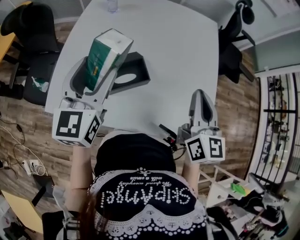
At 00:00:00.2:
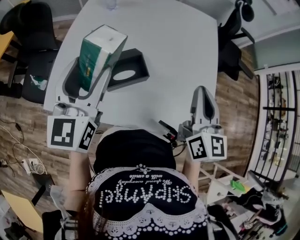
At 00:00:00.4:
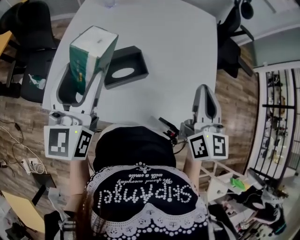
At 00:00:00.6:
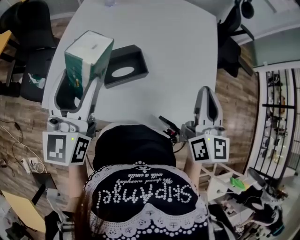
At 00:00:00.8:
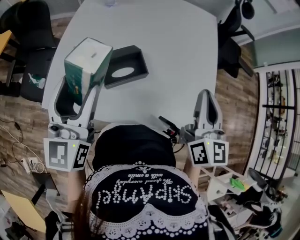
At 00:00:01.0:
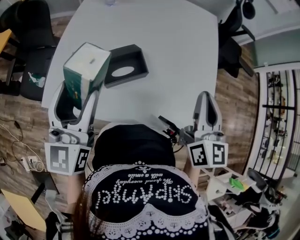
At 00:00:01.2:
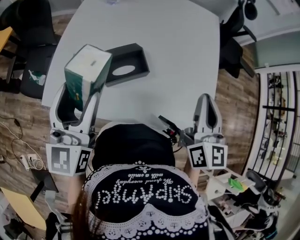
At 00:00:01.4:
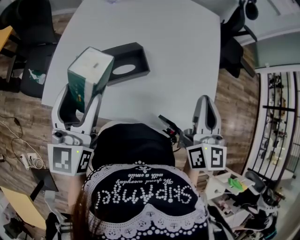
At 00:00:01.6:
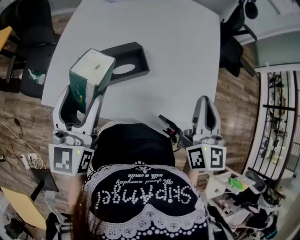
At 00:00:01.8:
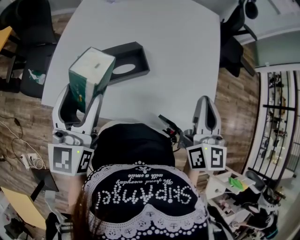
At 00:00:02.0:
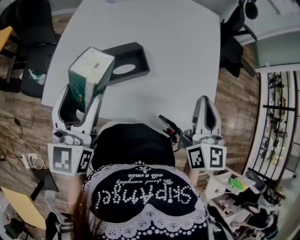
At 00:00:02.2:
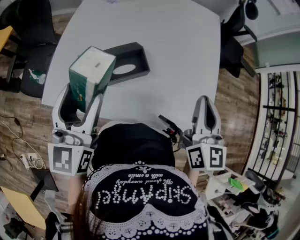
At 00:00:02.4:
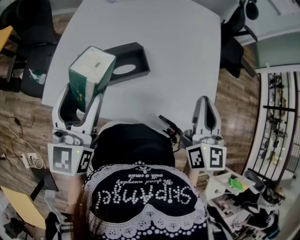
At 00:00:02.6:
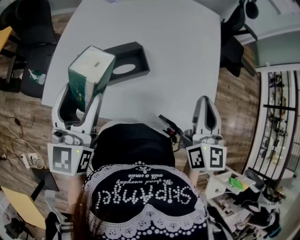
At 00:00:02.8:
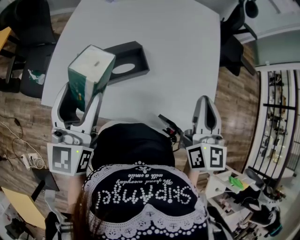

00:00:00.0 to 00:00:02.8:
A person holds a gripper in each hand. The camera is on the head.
00:00:00.0 to 00:00:01.4: The left gripper moves backward, approximately 10 cm.
00:00:01.4 to 00:00:02.8: There are only small adjustments of the grippers.

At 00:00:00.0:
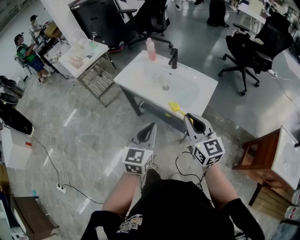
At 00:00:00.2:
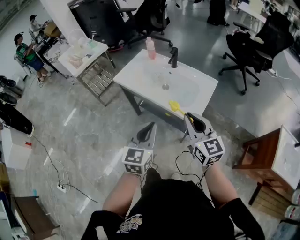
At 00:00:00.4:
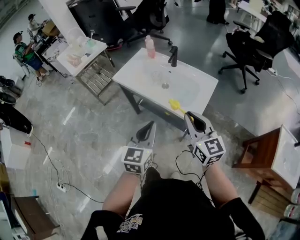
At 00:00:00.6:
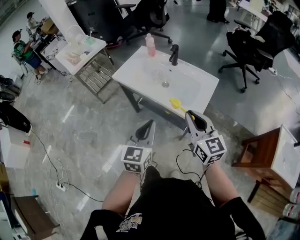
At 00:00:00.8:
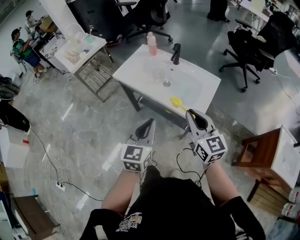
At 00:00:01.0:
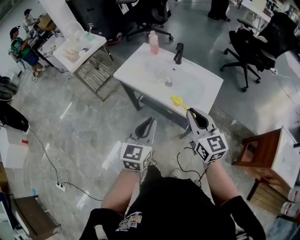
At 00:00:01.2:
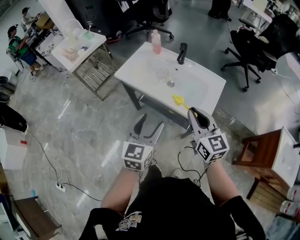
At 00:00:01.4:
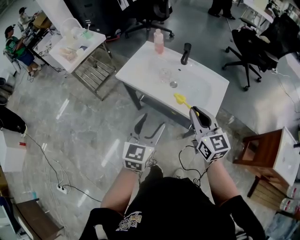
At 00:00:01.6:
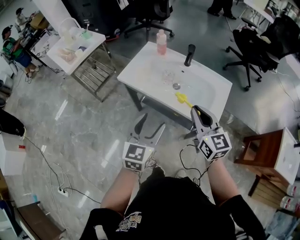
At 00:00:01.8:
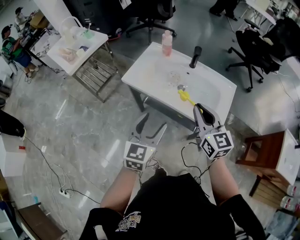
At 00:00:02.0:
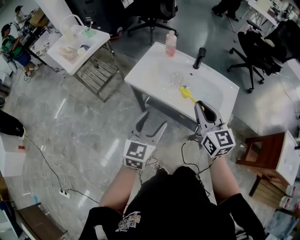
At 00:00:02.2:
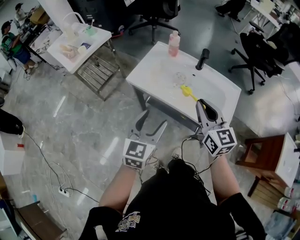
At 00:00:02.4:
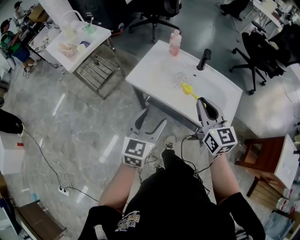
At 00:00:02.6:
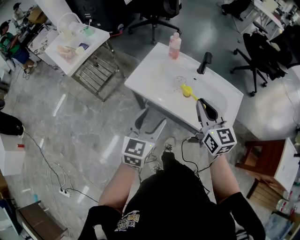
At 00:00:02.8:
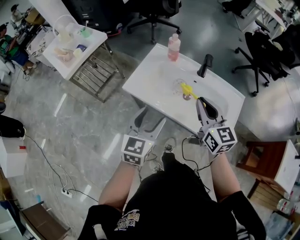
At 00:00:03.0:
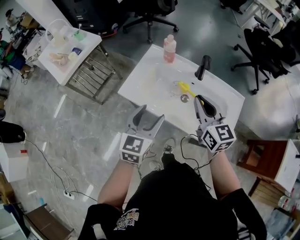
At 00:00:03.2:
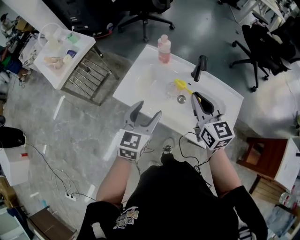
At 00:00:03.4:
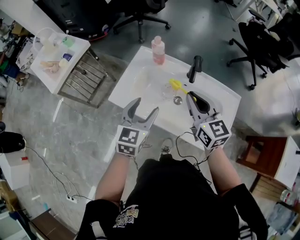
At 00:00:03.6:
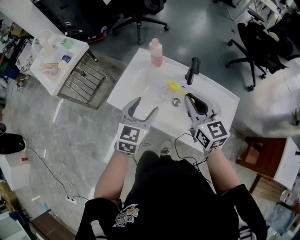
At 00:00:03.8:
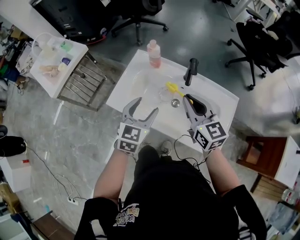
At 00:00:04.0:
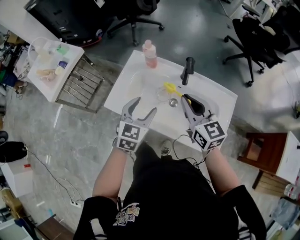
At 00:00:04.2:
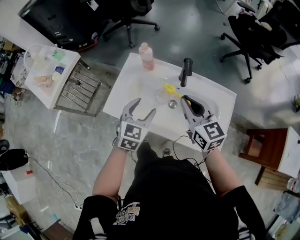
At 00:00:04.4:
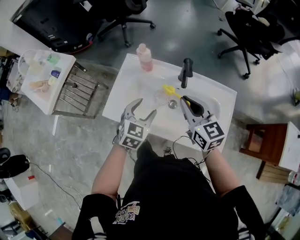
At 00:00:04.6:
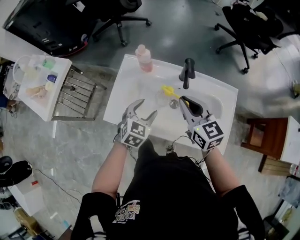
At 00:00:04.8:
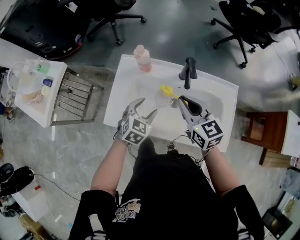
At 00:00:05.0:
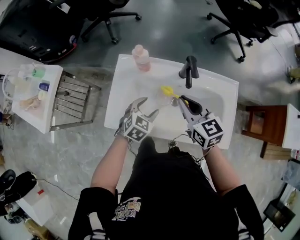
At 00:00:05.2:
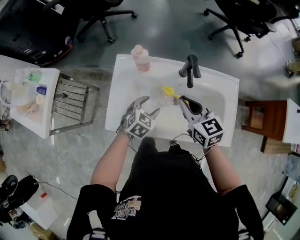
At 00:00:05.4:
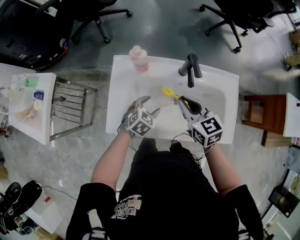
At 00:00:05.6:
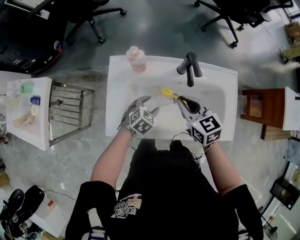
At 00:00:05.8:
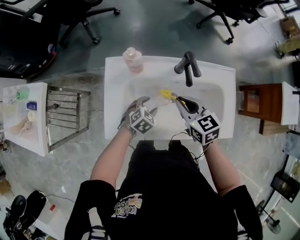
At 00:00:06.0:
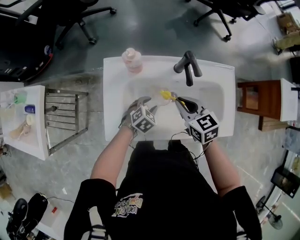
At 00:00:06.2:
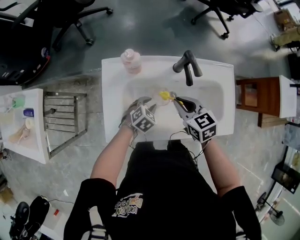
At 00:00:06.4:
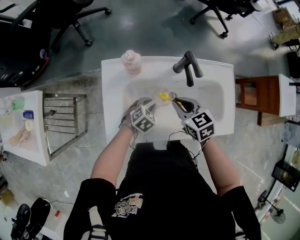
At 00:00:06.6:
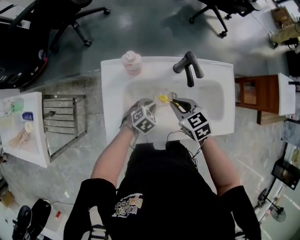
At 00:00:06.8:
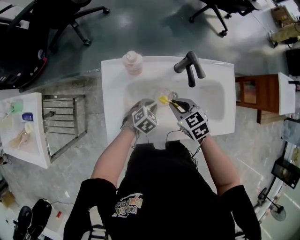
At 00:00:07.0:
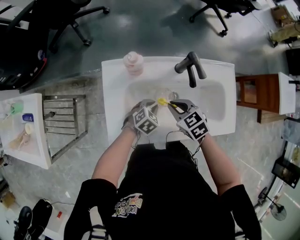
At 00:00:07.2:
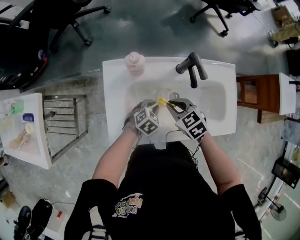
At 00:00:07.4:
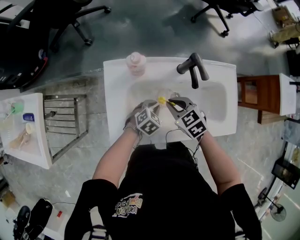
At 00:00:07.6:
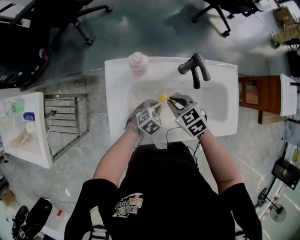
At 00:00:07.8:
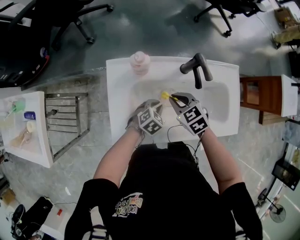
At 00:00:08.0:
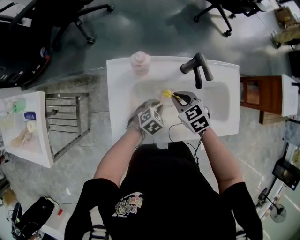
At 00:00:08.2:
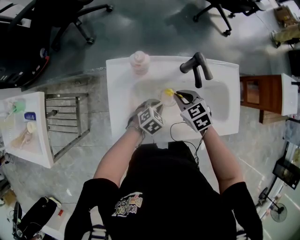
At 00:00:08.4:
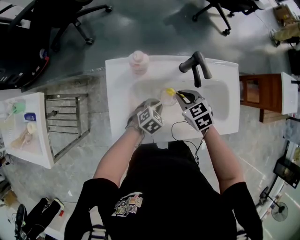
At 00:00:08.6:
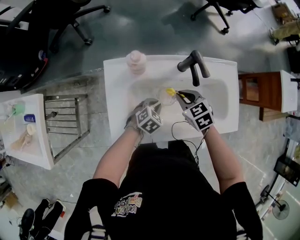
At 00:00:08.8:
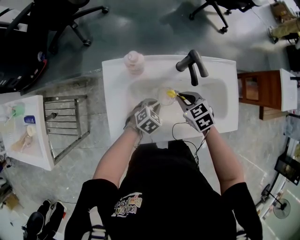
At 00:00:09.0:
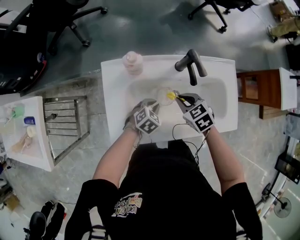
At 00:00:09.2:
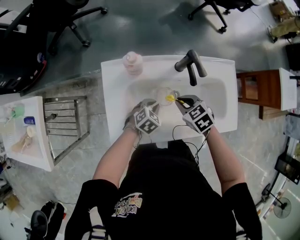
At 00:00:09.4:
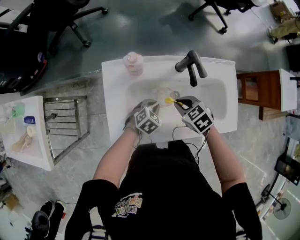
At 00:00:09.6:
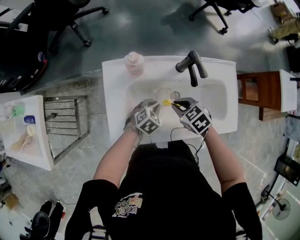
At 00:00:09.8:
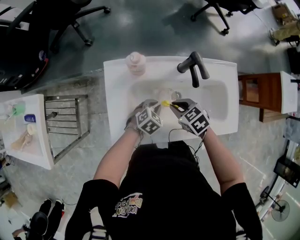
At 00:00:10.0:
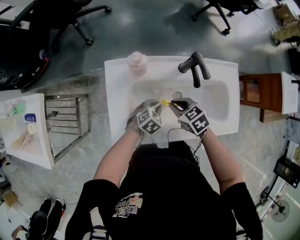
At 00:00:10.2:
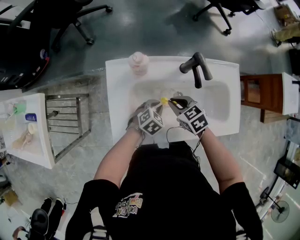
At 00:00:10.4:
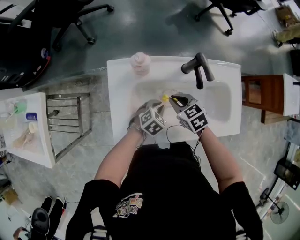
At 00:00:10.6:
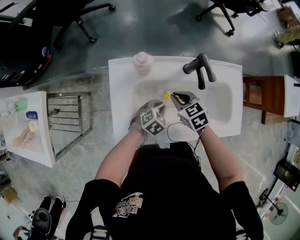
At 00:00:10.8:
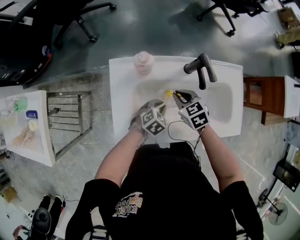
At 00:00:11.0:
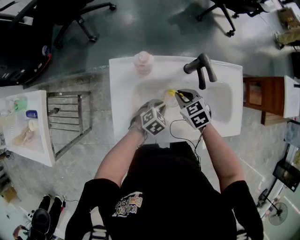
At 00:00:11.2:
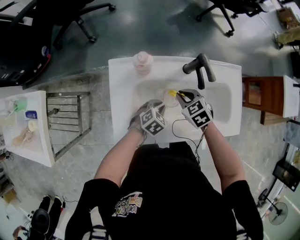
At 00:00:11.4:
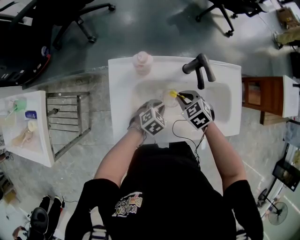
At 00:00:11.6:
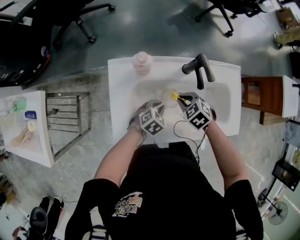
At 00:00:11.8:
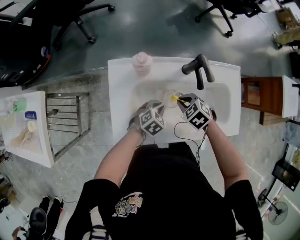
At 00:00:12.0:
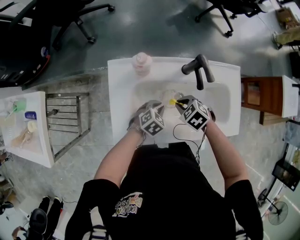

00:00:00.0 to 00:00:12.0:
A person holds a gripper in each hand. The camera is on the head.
00:00:00.0 to 00:00:01.6: Both grippers travel together forward and to the left, roughly 15 cm. The left gripper opens its fingers.
00:00:01.6 to 00:00:03.0: Both grippers travel together forward, some 20 cm.
00:00:03.0 to 00:00:04.4: The left gripper travels forward and downward by roughly 15 cm, and changes its angle by roughly 30 degrees. The right gripper heads forward, covering about 5 cm.
00:00:04.4 to 00:00:06.0: The two grippers go about 15 cm downward. The left gripper swivels roughly 40 degrees, and closes its fingers. Meanwhile the right gripper changes its angle by roughly 30 degrees.
00:00:06.0 to 00:00:07.6: The left gripper closes up, while the right gripper travels downward and to the left by roughly 10 cm.
00:00:07.6 to 00:00:09.0: The right gripper travels to the right by some 5 cm.
00:00:09.0 to 00:00:10.4: The right gripper goes roughly 5 cm to the left.
00:00:10.4 to 00:00:12.0: The right gripper rotates approximately 30 degrees.

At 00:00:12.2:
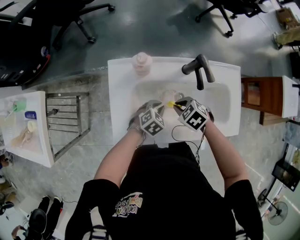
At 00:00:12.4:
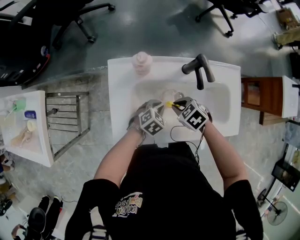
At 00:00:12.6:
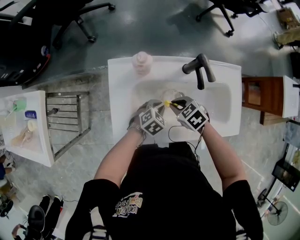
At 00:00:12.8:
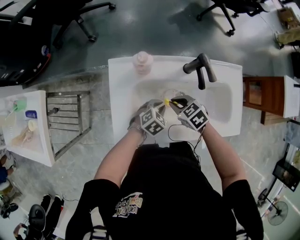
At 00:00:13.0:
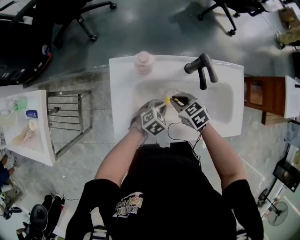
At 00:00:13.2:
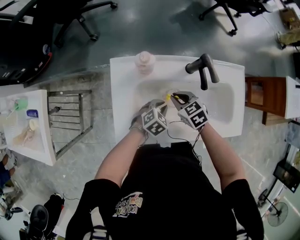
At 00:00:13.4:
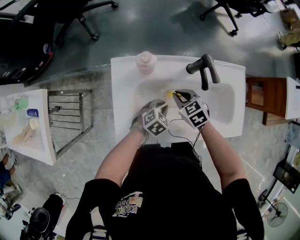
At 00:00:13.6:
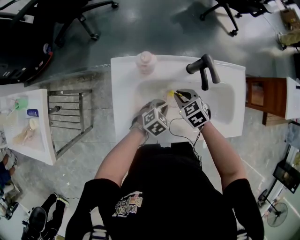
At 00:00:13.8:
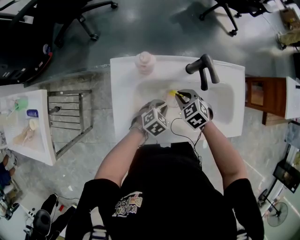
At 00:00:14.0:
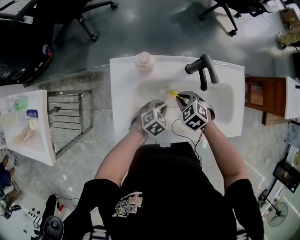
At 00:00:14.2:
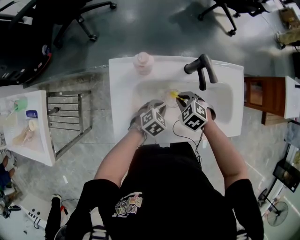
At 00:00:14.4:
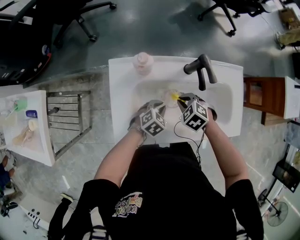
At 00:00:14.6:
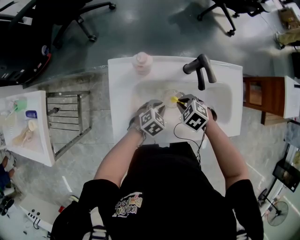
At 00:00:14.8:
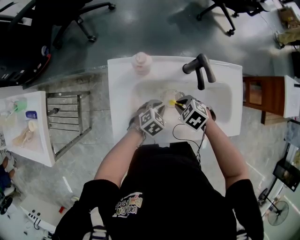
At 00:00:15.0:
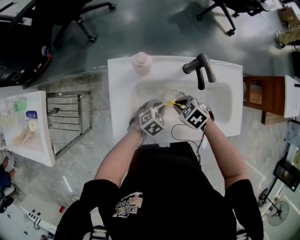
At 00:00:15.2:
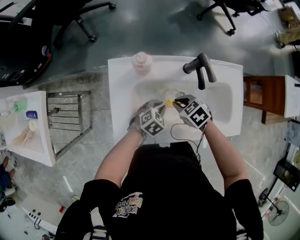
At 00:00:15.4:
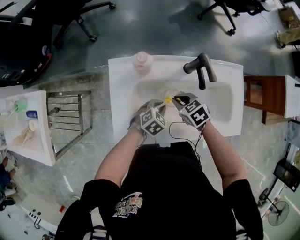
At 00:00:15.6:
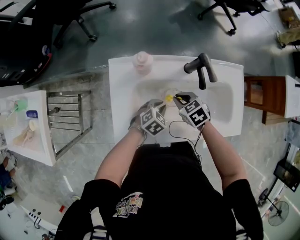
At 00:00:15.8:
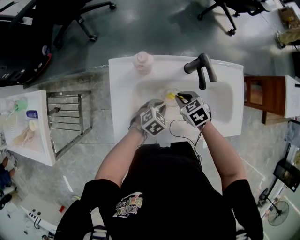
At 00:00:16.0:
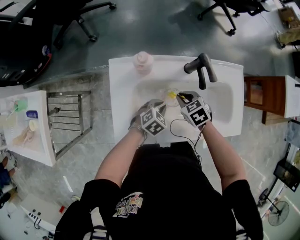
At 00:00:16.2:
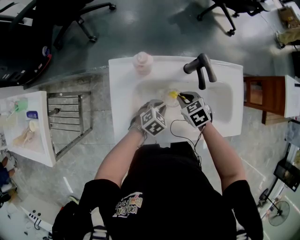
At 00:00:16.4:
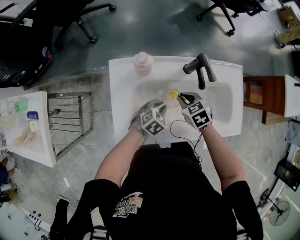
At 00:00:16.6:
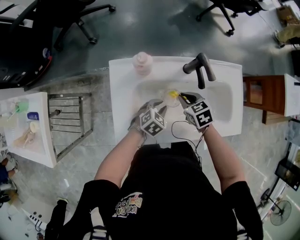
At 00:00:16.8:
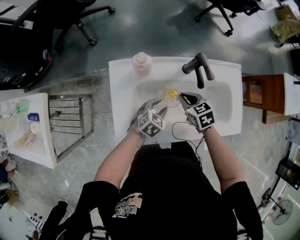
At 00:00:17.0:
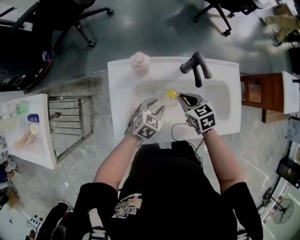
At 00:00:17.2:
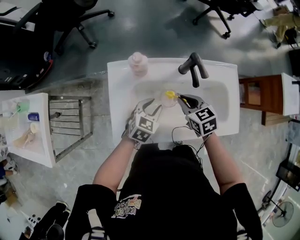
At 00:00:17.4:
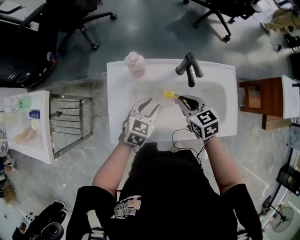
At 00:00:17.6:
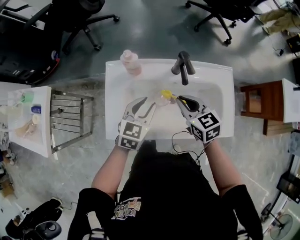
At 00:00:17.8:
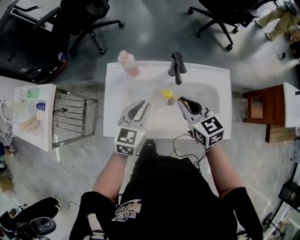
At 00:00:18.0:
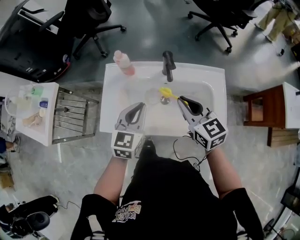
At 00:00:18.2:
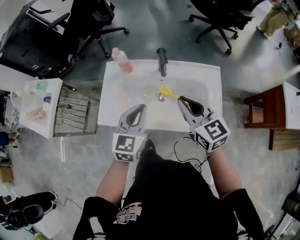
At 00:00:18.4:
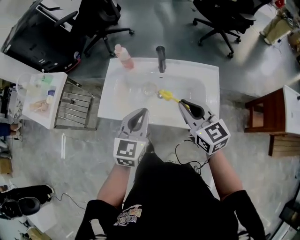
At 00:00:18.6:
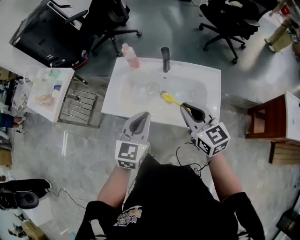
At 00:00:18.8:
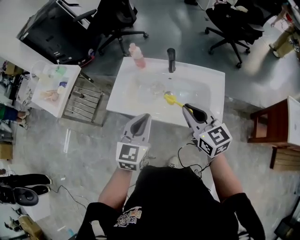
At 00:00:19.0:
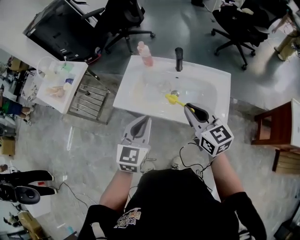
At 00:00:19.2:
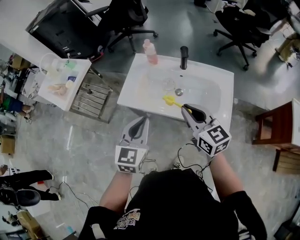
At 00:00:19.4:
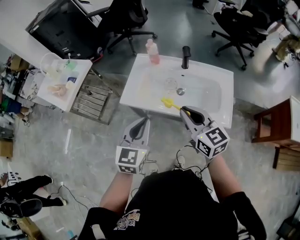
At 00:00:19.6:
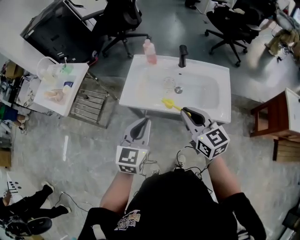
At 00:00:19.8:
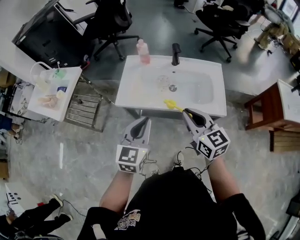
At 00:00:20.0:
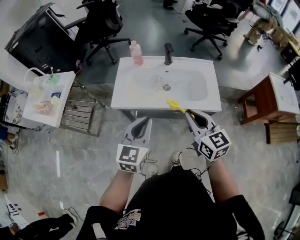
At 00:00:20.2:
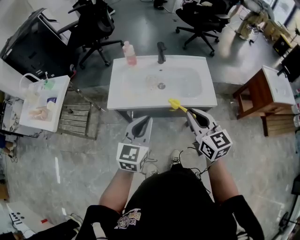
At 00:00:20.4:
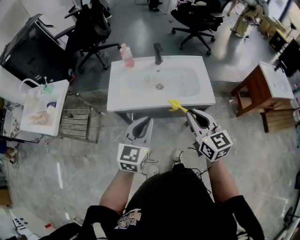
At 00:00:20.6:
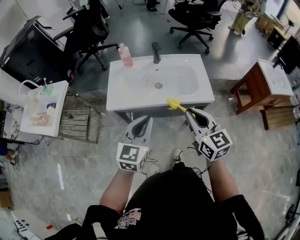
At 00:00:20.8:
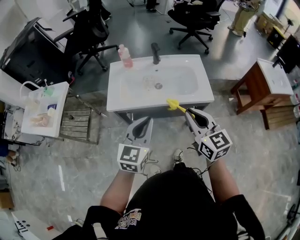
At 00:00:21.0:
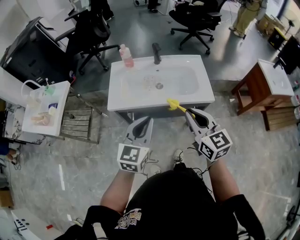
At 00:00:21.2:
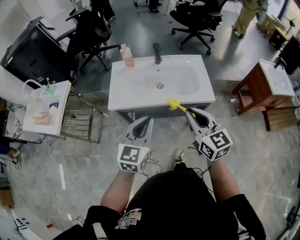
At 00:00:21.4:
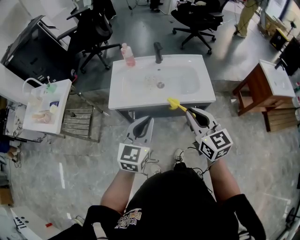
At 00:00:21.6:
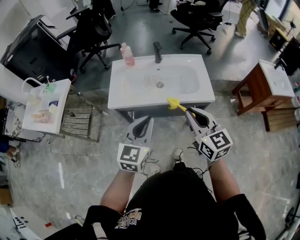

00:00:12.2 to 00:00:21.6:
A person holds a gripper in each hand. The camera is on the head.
00:00:12.2 to 00:00:13.8: The right gripper moves about 5 cm.
00:00:13.8 to 00:00:15.4: The grippers move only a little.
00:00:15.4 to 00:00:17.0: The right gripper moves roughly 5 cm.
00:00:17.0 to 00:00:18.4: The left gripper shifts approximately 30 cm upward and backward, turns by some 40 degrees, and closes up, while the right gripper heads upward, backward and to the right, covering approximately 30 cm, and tilts its fingers roughly 40 degrees upward.
00:00:18.4 to 00:00:20.0: Both grippers travel together backward and to the left, about 20 cm.
00:00:20.0 to 00:00:21.6: The right gripper travels backward by some 5 cm; the left gripper moves about 5 cm.
